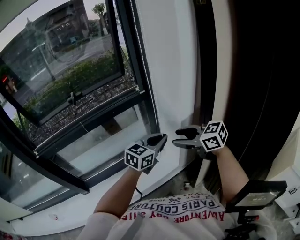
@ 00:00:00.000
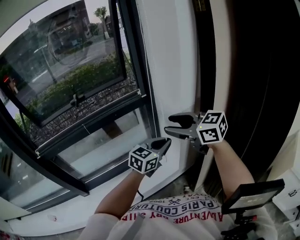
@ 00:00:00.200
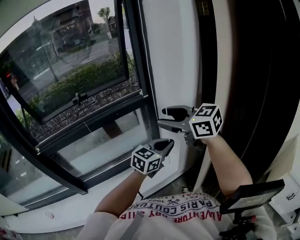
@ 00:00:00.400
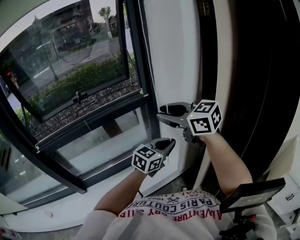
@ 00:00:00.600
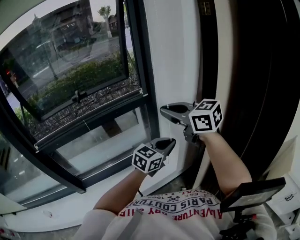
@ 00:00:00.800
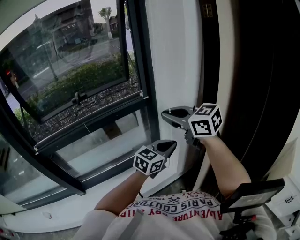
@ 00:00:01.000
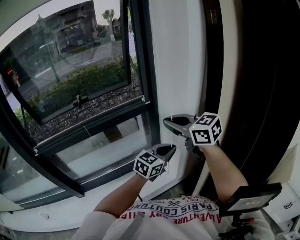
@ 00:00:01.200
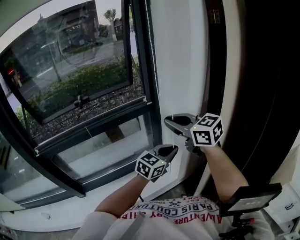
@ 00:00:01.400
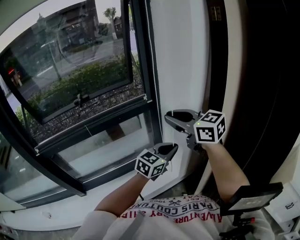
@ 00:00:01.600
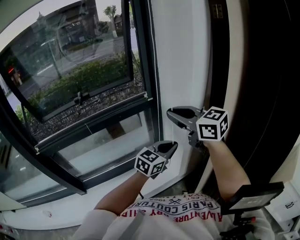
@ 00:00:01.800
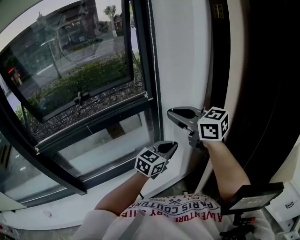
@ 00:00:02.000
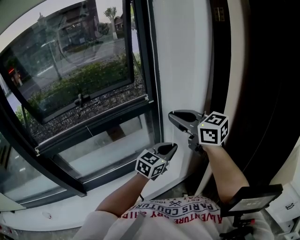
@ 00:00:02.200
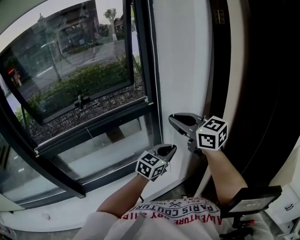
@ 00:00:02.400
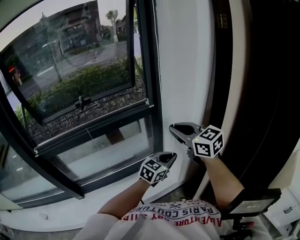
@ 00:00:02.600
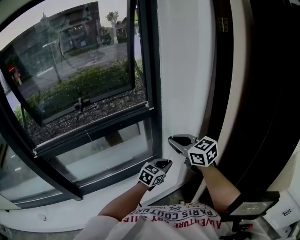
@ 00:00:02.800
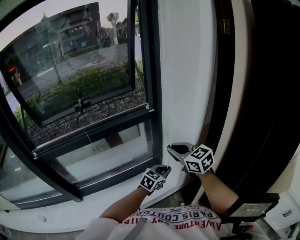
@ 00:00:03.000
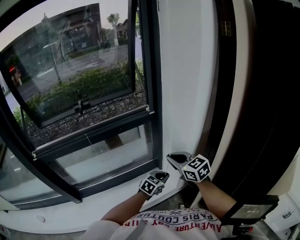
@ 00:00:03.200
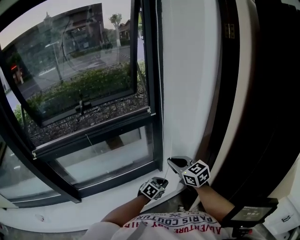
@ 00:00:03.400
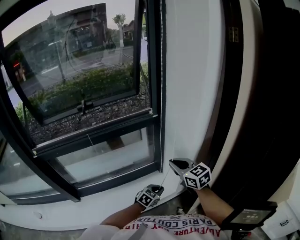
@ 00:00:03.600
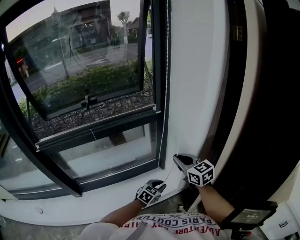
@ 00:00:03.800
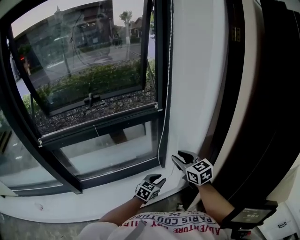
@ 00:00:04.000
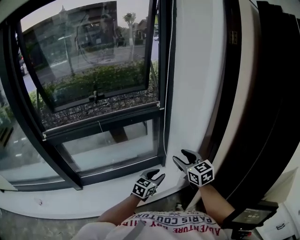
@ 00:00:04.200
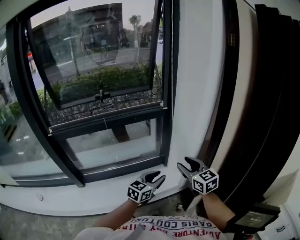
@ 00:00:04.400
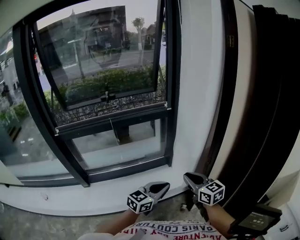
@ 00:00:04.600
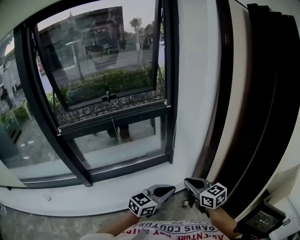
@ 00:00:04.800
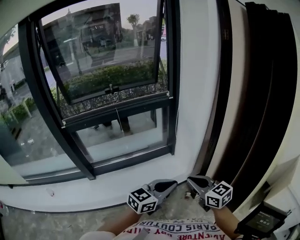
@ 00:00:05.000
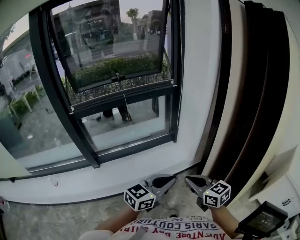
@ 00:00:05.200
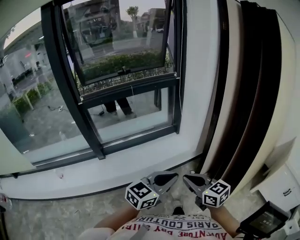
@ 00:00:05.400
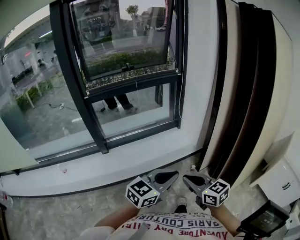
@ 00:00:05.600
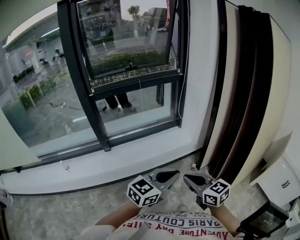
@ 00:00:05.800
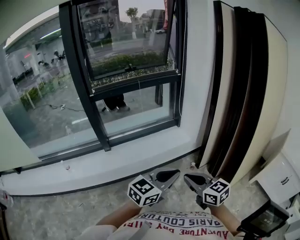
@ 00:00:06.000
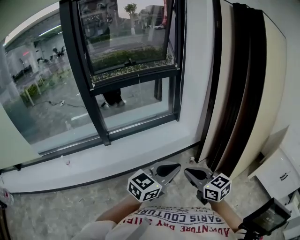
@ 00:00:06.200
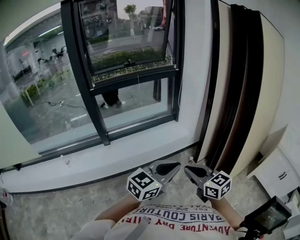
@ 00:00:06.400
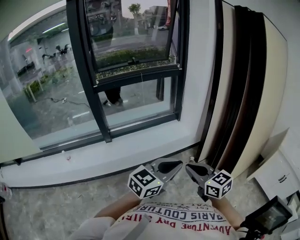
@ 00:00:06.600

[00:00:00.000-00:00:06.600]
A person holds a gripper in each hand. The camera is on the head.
00:00:00.000 to 00:00:01.600: The right gripper is displaced upward and forward by some 15 cm, and closes its fingers.
00:00:01.600 to 00:00:03.200: The two grippers go roughly 20 cm downward.
00:00:03.200 to 00:00:05.000: The left gripper heads backward and upward, covering some 35 cm, rotates roughly 30 degrees, and opens, then closes once more; the right gripper moves backward, approximately 30 cm, and opens, then closes again.
00:00:05.000 to 00:00:06.600: The grippers both shift backward by roughly 35 cm.

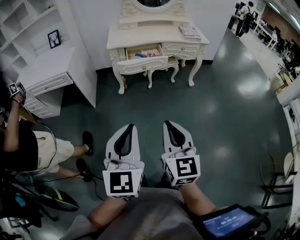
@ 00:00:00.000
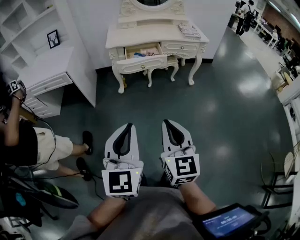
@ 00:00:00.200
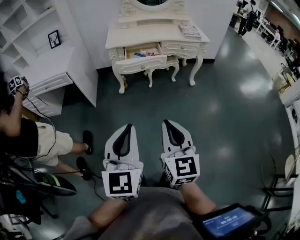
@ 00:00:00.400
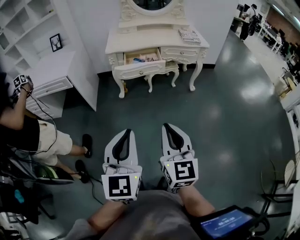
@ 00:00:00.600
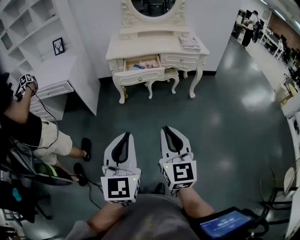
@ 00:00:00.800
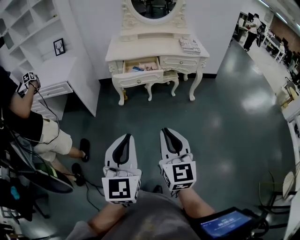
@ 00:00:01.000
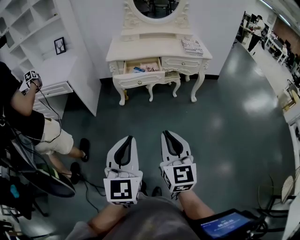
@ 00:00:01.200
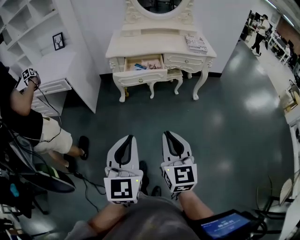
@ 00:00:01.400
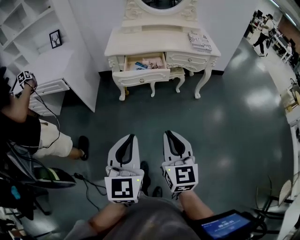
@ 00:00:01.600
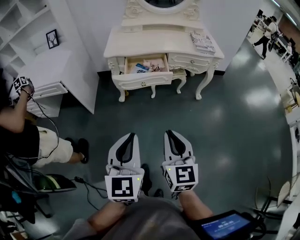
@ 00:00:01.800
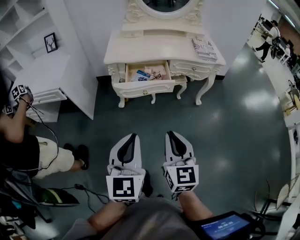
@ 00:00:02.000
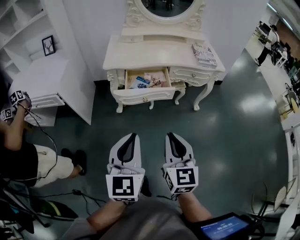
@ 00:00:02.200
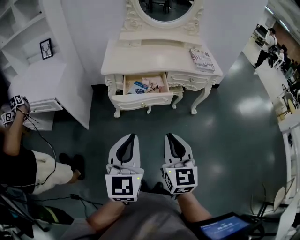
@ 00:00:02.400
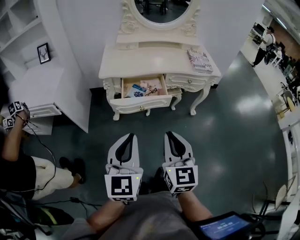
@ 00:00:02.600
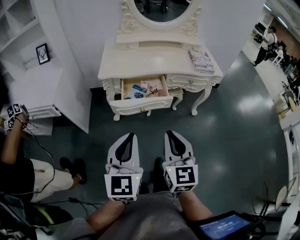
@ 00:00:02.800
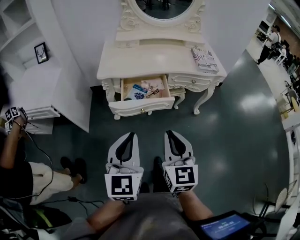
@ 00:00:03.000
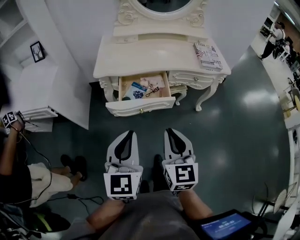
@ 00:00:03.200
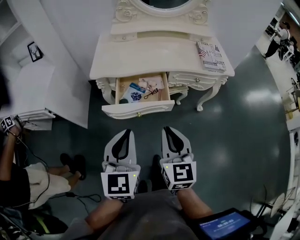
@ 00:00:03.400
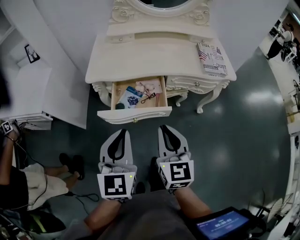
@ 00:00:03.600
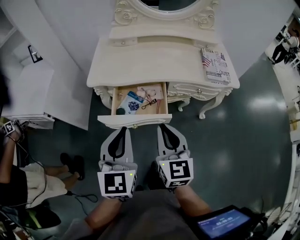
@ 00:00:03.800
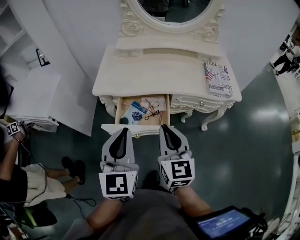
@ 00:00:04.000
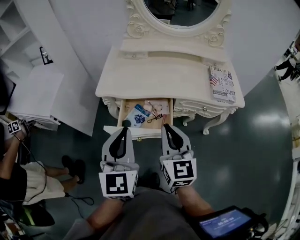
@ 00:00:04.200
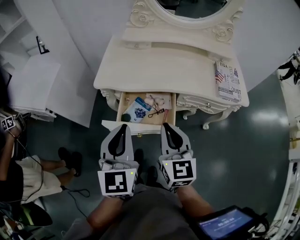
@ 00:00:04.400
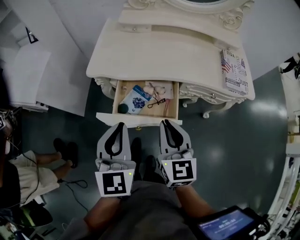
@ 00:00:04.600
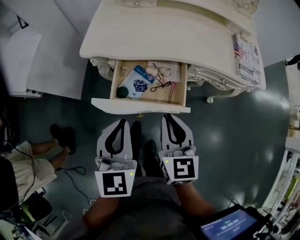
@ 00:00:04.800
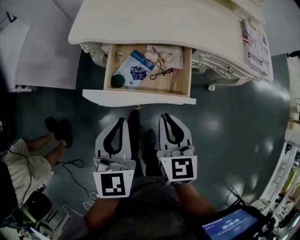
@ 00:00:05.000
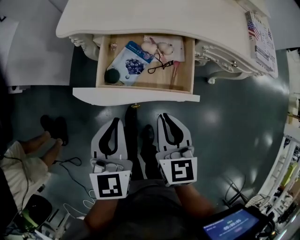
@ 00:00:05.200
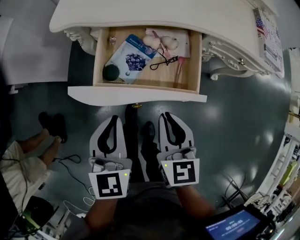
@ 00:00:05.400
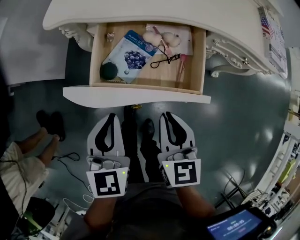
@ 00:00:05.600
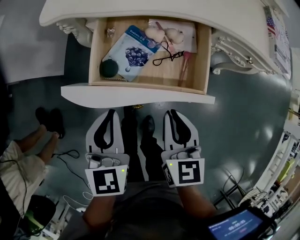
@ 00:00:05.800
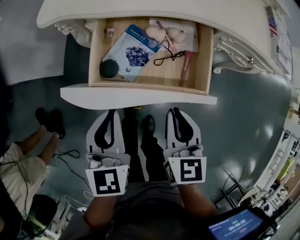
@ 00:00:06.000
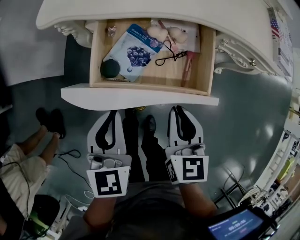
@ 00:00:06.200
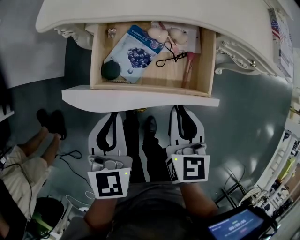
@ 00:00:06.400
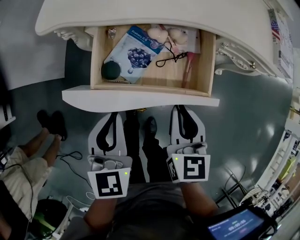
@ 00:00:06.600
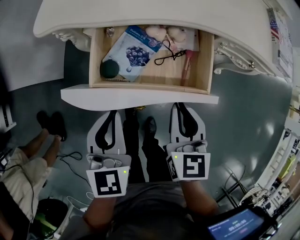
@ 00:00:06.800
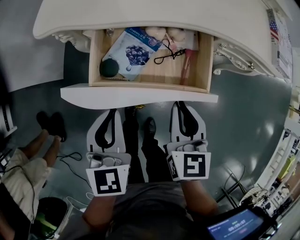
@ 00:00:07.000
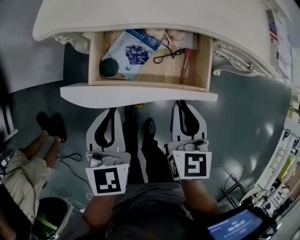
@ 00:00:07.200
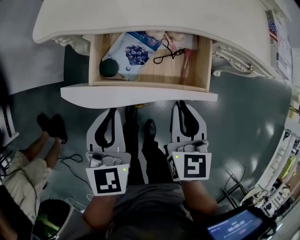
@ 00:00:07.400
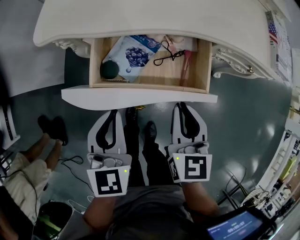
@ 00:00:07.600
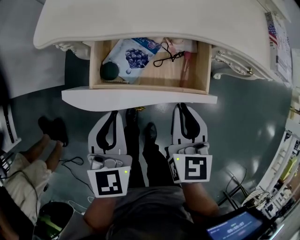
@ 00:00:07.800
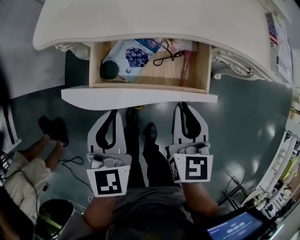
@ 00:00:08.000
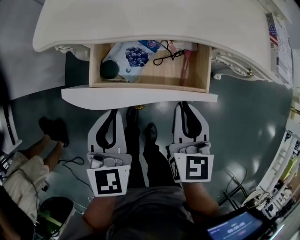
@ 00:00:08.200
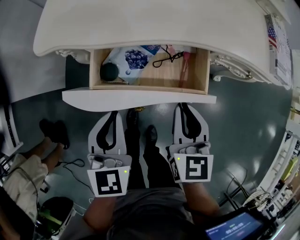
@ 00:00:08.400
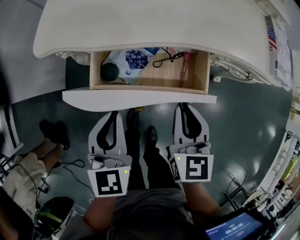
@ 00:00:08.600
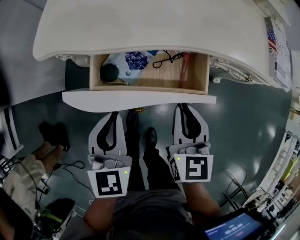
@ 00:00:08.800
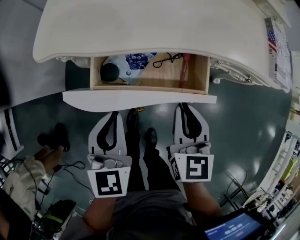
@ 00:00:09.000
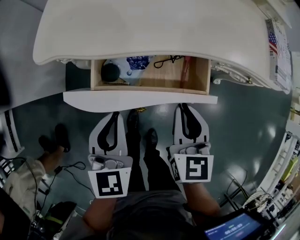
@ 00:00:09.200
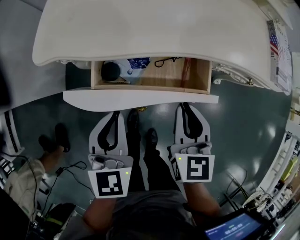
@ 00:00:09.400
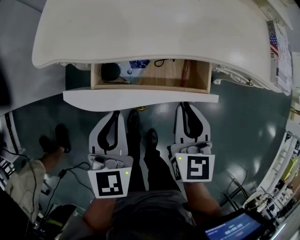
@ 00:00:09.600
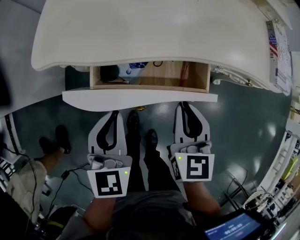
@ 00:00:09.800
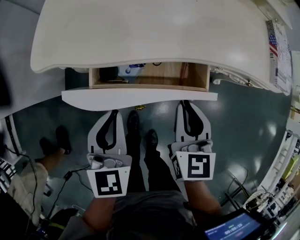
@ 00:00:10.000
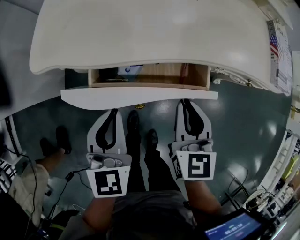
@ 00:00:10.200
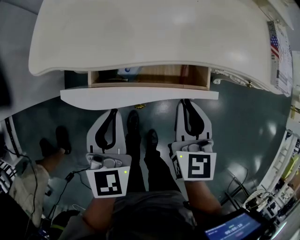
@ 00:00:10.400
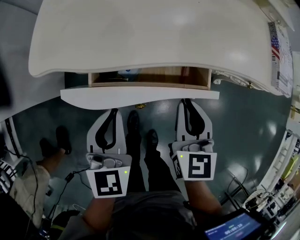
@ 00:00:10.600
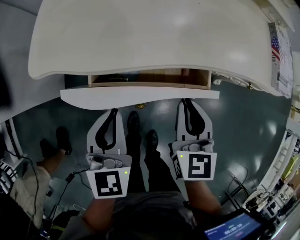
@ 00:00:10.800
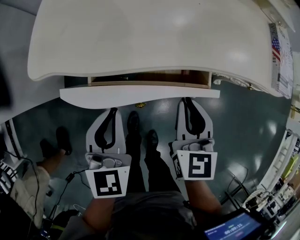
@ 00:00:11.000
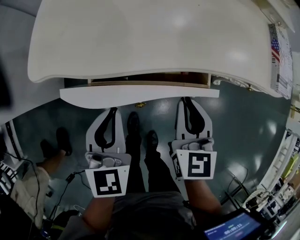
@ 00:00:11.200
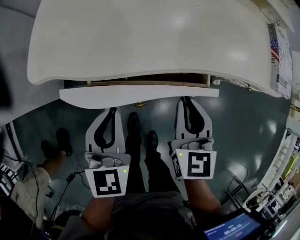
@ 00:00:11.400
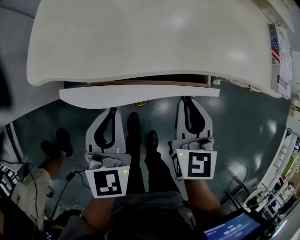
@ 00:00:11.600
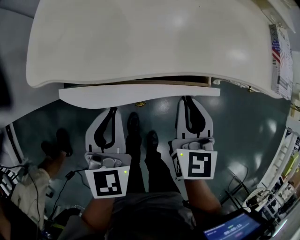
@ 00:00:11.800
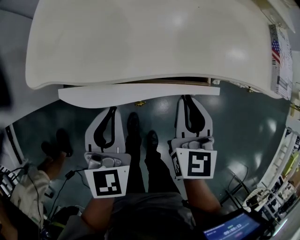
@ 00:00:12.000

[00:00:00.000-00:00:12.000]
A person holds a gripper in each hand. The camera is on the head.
00:00:00.000 to 00:00:01.600: The two grippers go some 15 cm forward and to the right.
00:00:01.600 to 00:00:03.000: Both grippers move forward, roughly 25 cm.
00:00:03.000 to 00:00:04.400: Both grippers move forward, about 25 cm.
00:00:04.400 to 00:00:06.000: Both grippers move downward, about 25 cm. The left gripper rotates roughly 20 degrees. Meanwhile the right gripper rotates about 20 degrees.
00:00:06.000 to 00:00:09.000: The grippers move only a little.
00:00:09.000 to 00:00:10.400: The grippers stay close to where they were, moving slightly.
00:00:10.400 to 00:00:12.000: The grippers make only small movements.

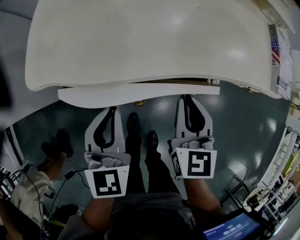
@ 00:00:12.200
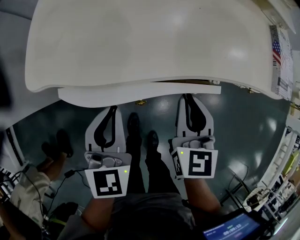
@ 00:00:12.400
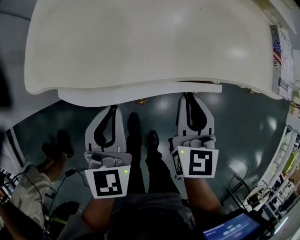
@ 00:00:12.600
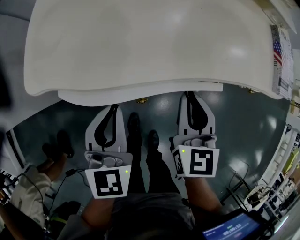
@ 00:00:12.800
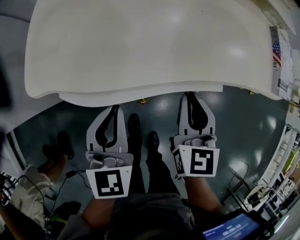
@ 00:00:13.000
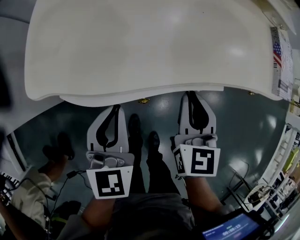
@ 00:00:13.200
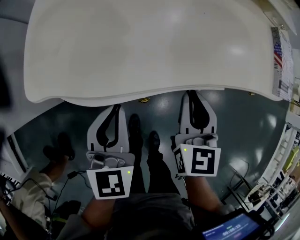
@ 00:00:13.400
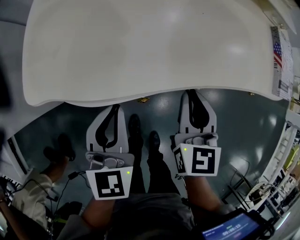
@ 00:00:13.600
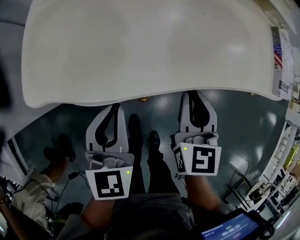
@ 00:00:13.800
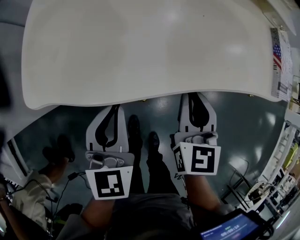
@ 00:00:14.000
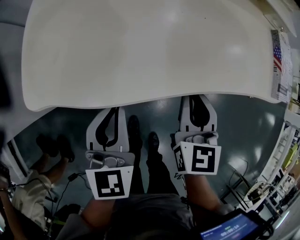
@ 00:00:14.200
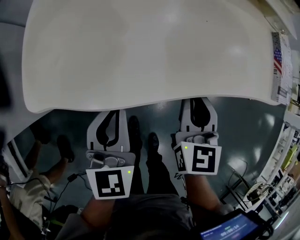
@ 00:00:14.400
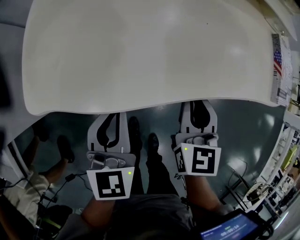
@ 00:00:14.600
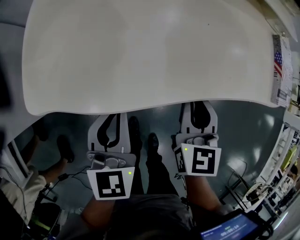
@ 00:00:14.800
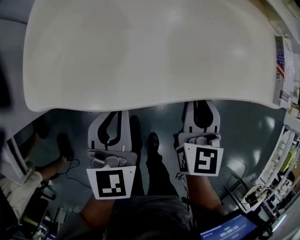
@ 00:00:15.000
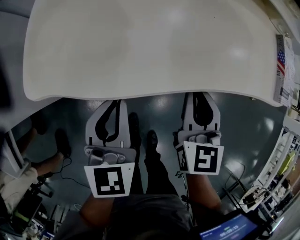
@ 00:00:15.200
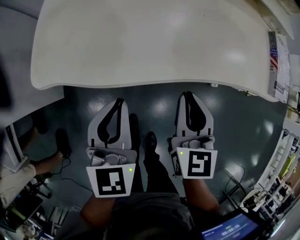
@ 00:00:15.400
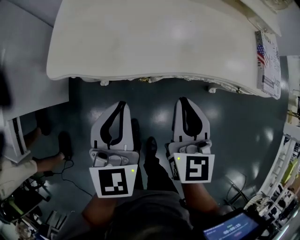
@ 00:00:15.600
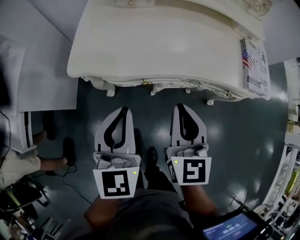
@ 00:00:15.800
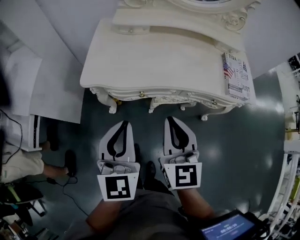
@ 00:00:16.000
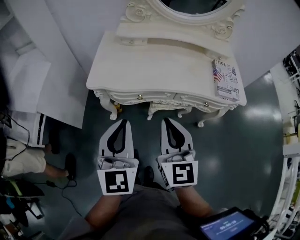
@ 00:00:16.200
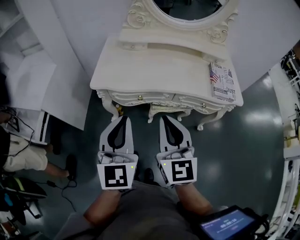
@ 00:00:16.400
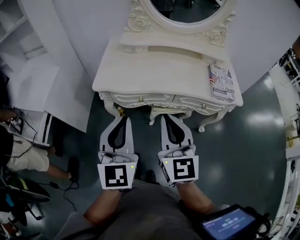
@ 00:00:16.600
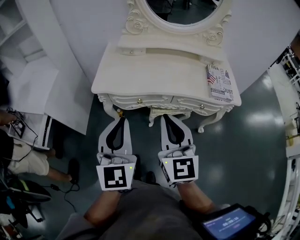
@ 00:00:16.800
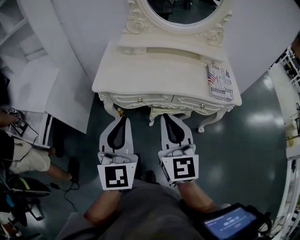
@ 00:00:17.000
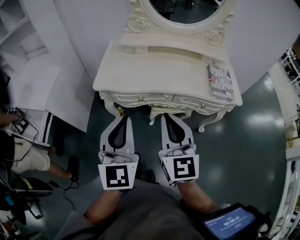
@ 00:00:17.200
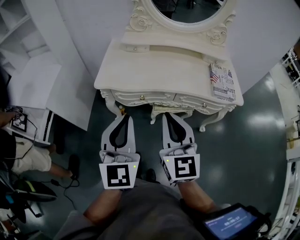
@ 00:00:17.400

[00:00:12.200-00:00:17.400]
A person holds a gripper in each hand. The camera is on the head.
00:00:12.200 to 00:00:14.000: The grippers stay close to where they were, moving slightly.
00:00:14.000 to 00:00:15.600: Both grippers travel together upward and backward, about 10 cm.
00:00:15.600 to 00:00:17.400: The two grippers go about 30 cm upward and backward. The left gripper changes its angle by roughly 20 degrees. The right gripper turns by some 20 degrees.
